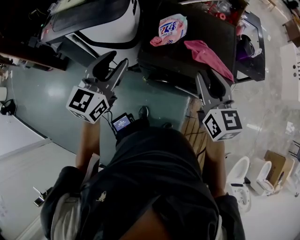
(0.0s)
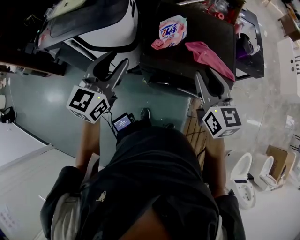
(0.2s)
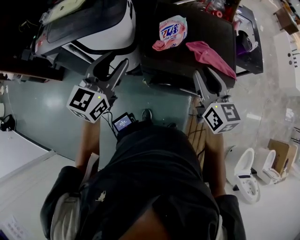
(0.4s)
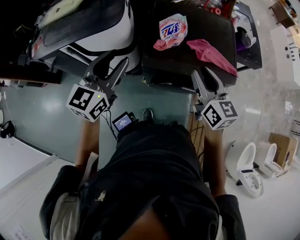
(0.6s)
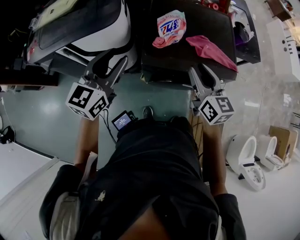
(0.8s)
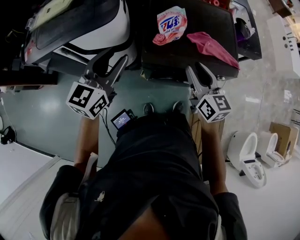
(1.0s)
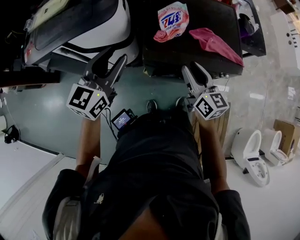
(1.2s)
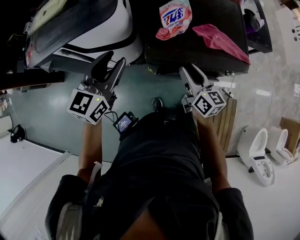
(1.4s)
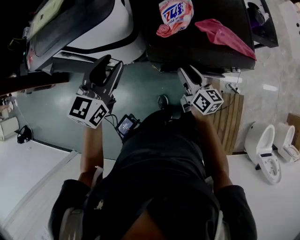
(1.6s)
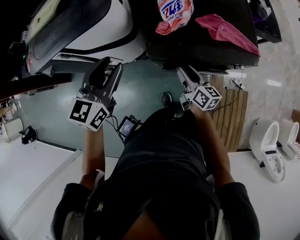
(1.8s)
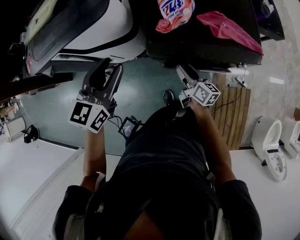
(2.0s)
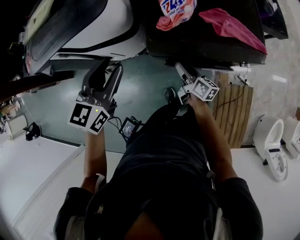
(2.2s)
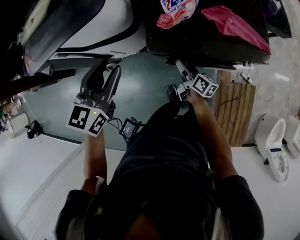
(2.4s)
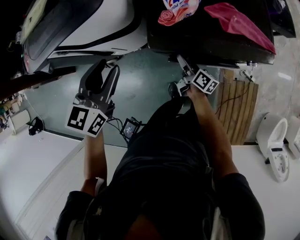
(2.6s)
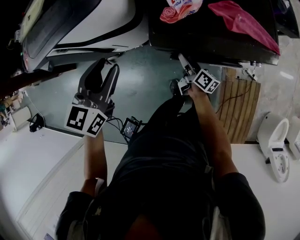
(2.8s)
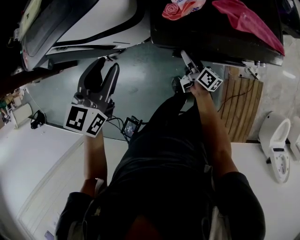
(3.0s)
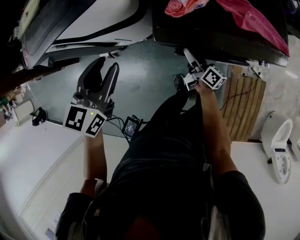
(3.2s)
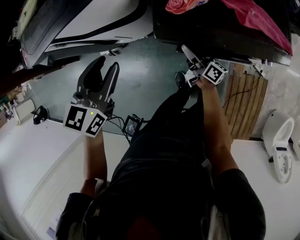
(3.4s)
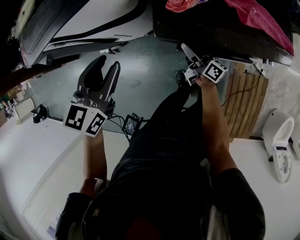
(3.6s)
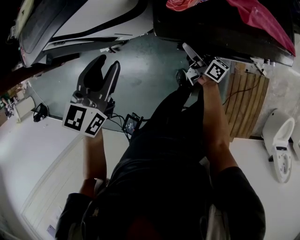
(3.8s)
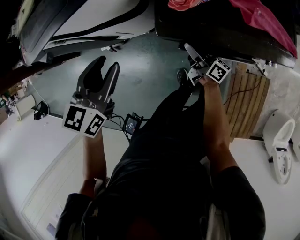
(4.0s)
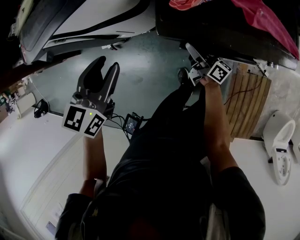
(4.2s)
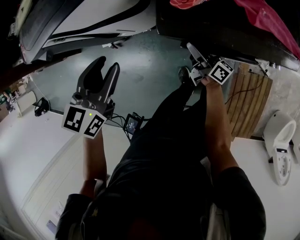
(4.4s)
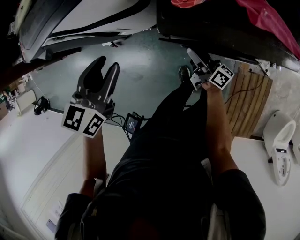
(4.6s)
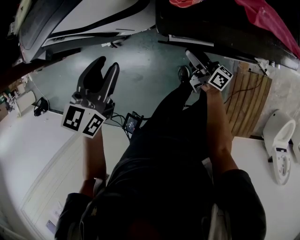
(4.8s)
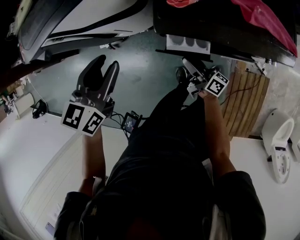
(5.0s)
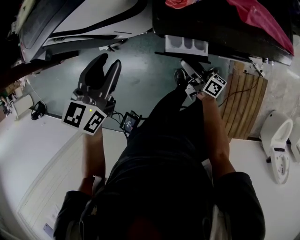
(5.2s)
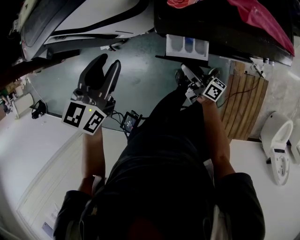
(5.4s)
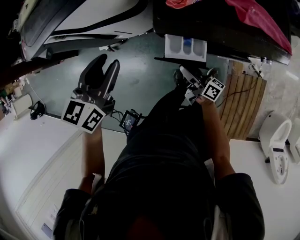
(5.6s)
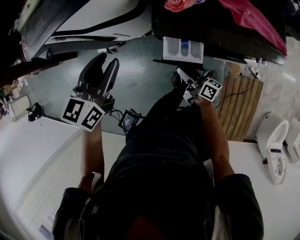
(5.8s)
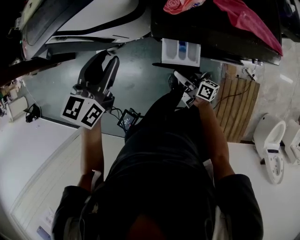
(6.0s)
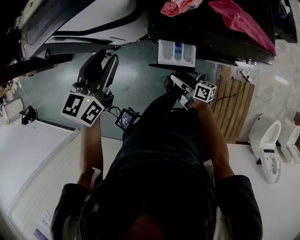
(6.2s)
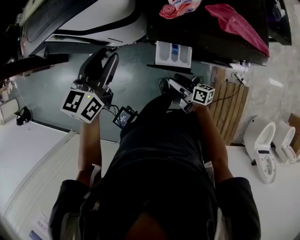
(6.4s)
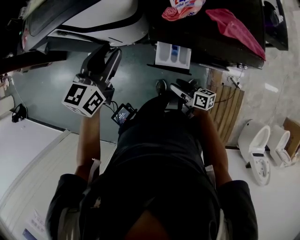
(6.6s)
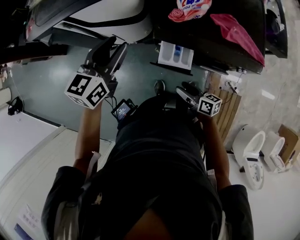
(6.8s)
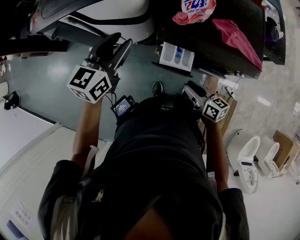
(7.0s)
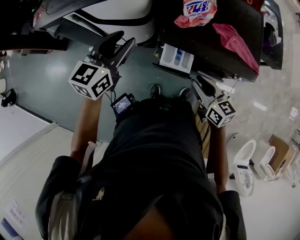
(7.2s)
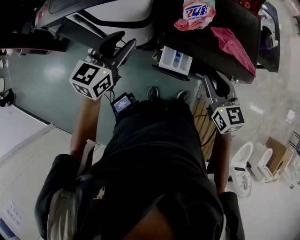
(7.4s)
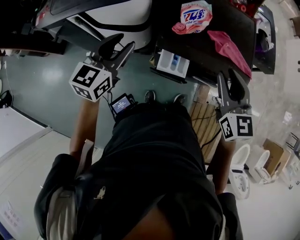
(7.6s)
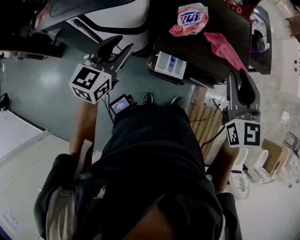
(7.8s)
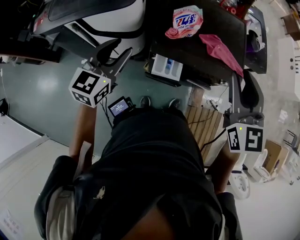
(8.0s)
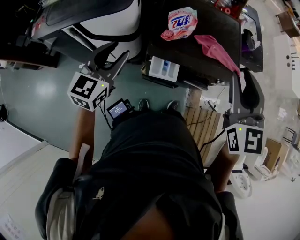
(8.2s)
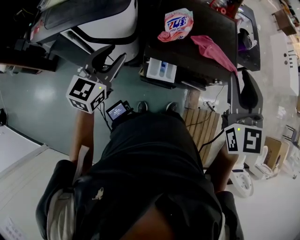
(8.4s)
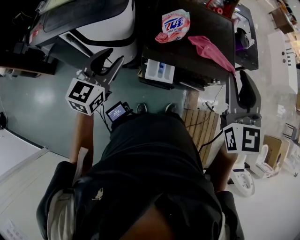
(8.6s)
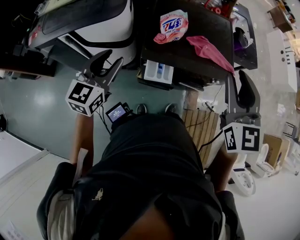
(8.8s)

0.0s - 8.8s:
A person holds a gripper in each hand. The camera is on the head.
0.0s - 1.4s: The left gripper is displaced to the left, downward and forward by about 15 cm. The right gripper travels downward and to the left by approximately 20 cm, and rotates roughly 30 degrees.
1.4s - 3.0s: The right gripper heads downward, covering approximately 25 cm, changes its angle by about 40 degrees, and opens. The left gripper shifts roughly 10 cm downward.
3.0s - 4.4s: The grippers make only small movements.
4.4s - 5.8s: The right gripper is displaced backward by about 10 cm.
5.8s - 7.4s: The left gripper heads upward, covering some 10 cm. Meanwhile the right gripper is displaced upward by approximately 30 cm, and rolls counterclockwise, seen from behind, by some 60 degrees.
7.4s - 8.8s: The right gripper heads upward, covering about 20 cm, and swivels approximately 30 degrees.

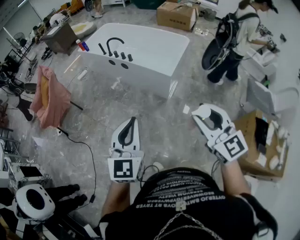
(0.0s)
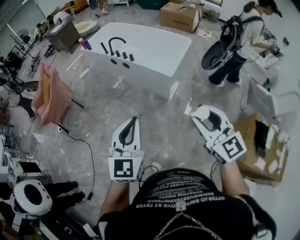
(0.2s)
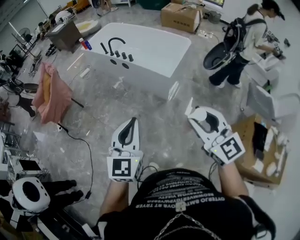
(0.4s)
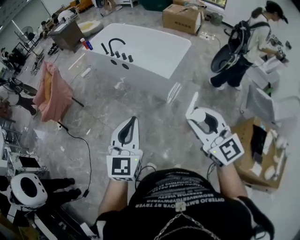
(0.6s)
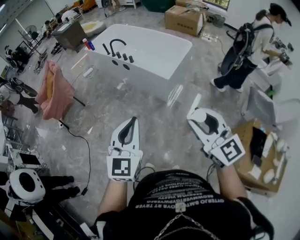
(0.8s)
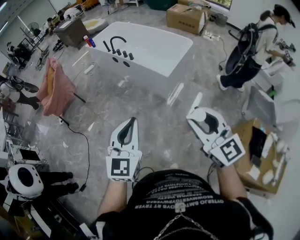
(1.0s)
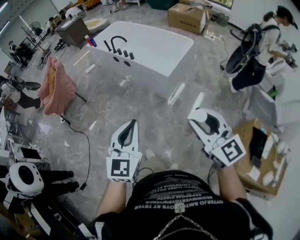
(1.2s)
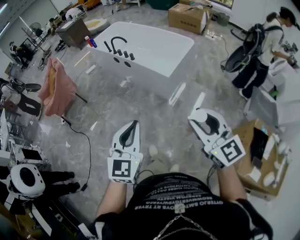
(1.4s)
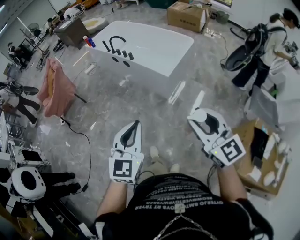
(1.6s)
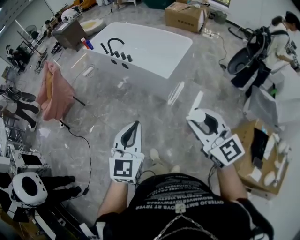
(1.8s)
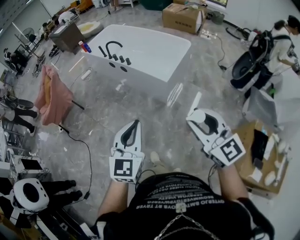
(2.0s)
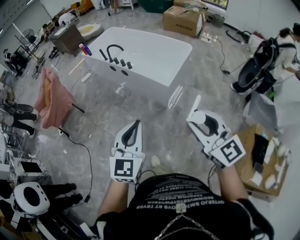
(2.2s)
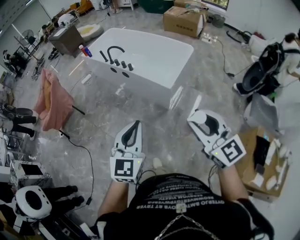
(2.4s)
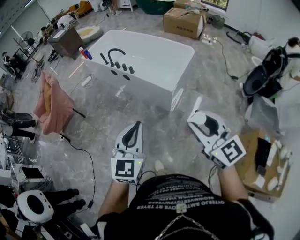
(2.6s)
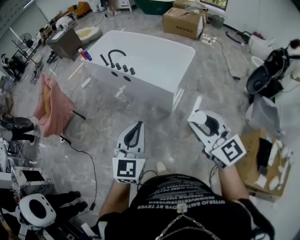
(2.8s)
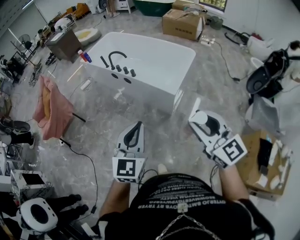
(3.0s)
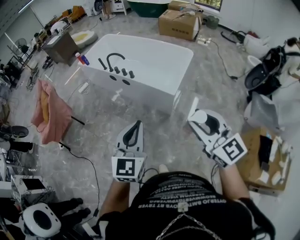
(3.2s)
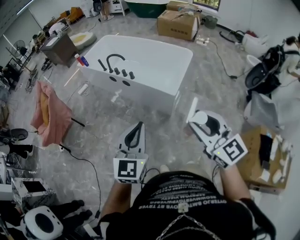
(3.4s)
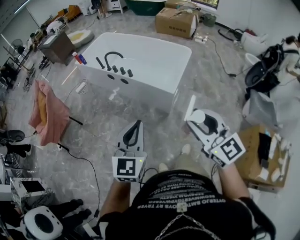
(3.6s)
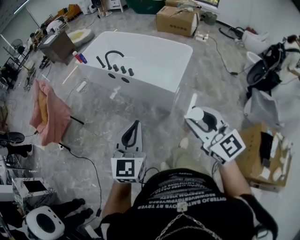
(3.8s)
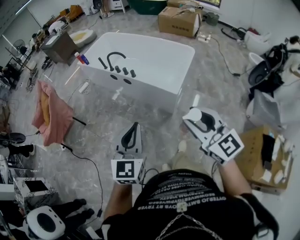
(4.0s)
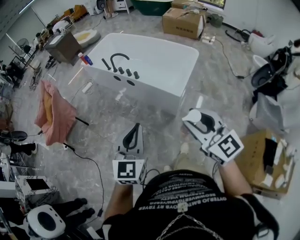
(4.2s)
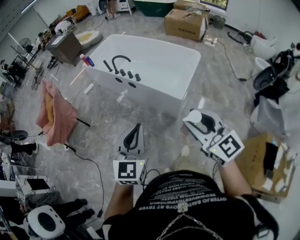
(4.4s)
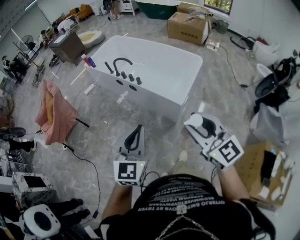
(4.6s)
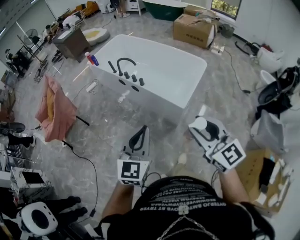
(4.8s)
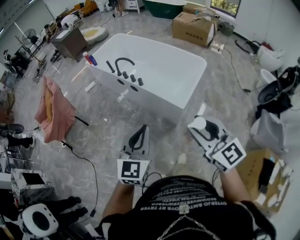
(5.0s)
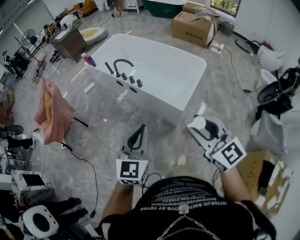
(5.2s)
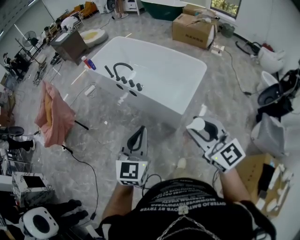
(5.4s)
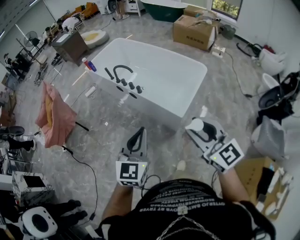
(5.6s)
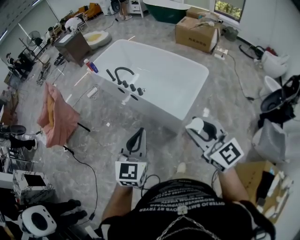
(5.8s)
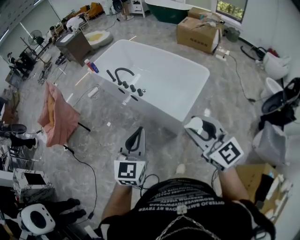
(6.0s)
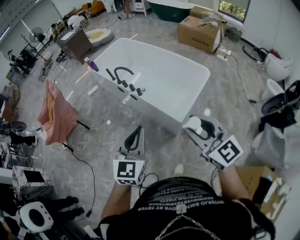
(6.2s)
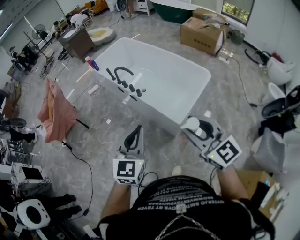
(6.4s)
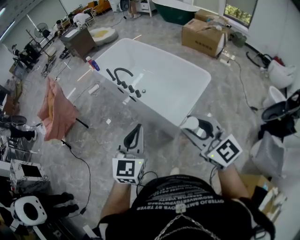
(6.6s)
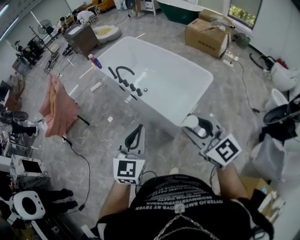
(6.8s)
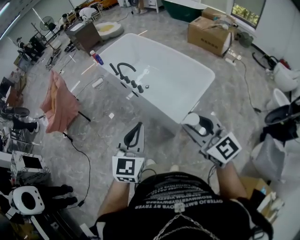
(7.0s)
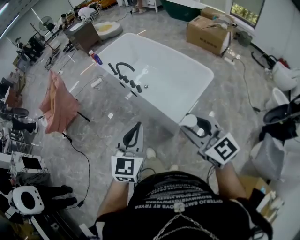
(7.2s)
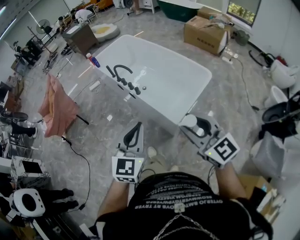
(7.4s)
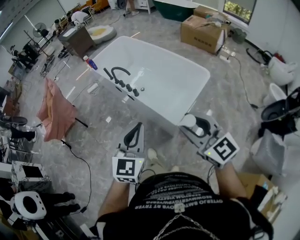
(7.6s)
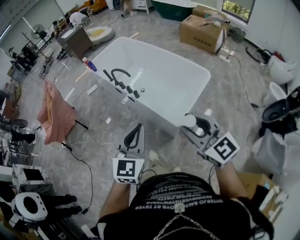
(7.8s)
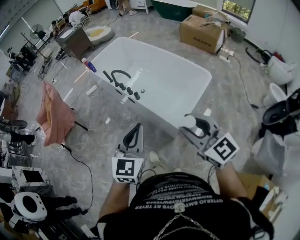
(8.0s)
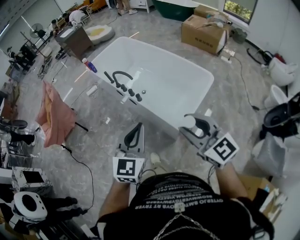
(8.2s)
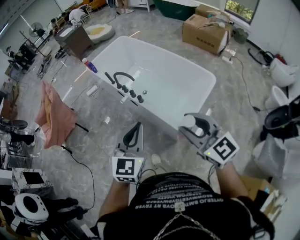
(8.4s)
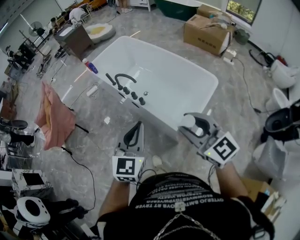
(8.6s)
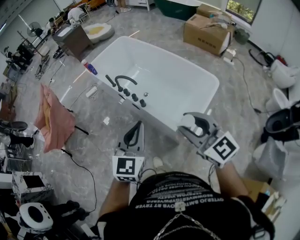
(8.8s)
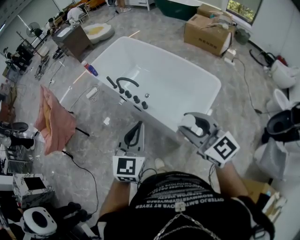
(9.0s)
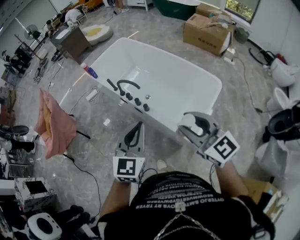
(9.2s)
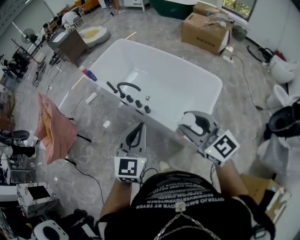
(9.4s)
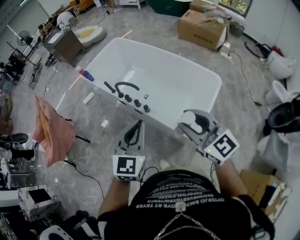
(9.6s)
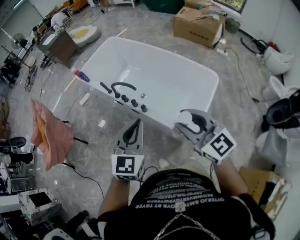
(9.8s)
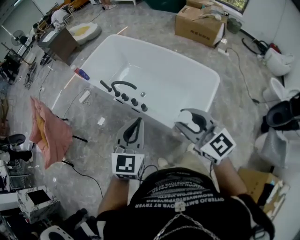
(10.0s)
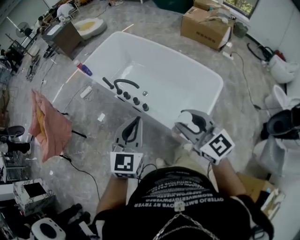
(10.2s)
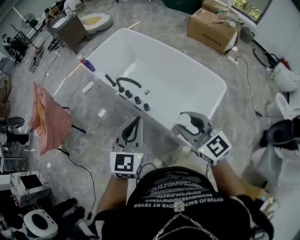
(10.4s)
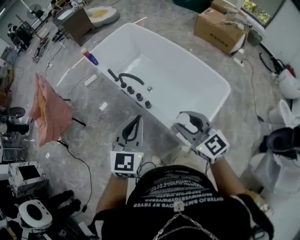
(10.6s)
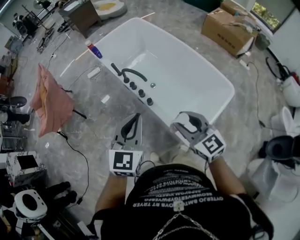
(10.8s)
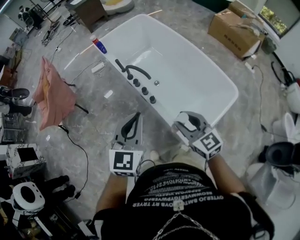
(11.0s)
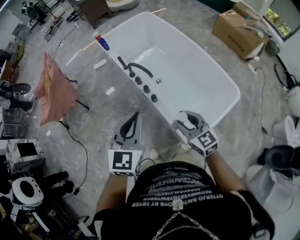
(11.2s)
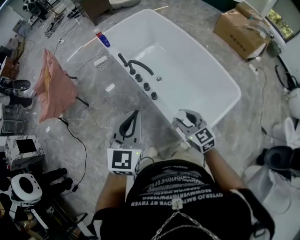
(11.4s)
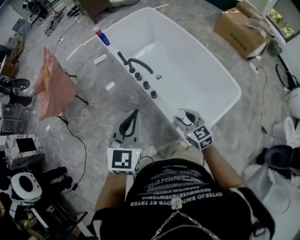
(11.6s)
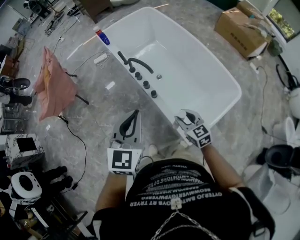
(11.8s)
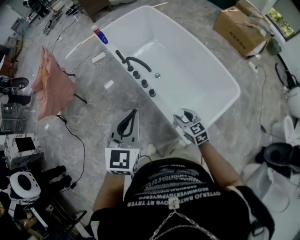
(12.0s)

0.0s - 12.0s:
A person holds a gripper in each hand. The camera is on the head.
0.0s - 1.6s: The two grippers go about 10 cm to the right.
1.6s - 3.0s: The left gripper is displaced forward by roughly 20 cm, while the right gripper heads forward and to the left, covering about 20 cm.
3.0s - 4.4s: Both grippers travel together forward, approximately 5 cm.
4.4s - 6.0s: Both grippers travel together forward and to the right, approximately 15 cm.
6.0s - 7.6s: The left gripper travels to the right by approximately 5 cm. Meanwhile the right gripper travels forward by about 5 cm.
7.6s - 9.0s: Both grippers move forward, about 20 cm.
9.0s - 10.4s: The right gripper goes approximately 15 cm forward and downward. The left gripper is displaced forward by some 10 cm.
10.4s - 12.0s: The right gripper heads downward, covering some 25 cm, and turns by some 20 degrees.

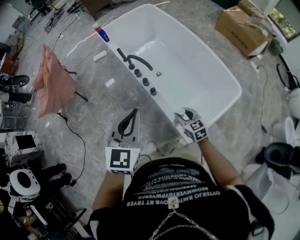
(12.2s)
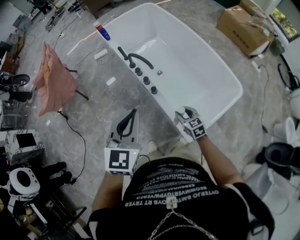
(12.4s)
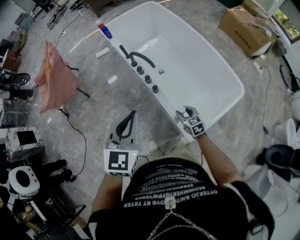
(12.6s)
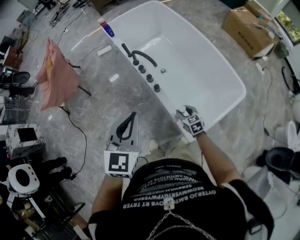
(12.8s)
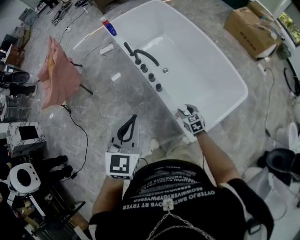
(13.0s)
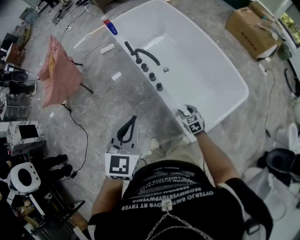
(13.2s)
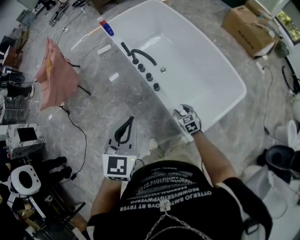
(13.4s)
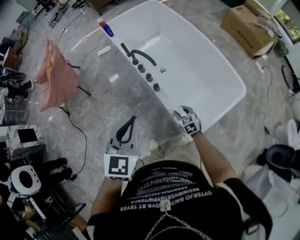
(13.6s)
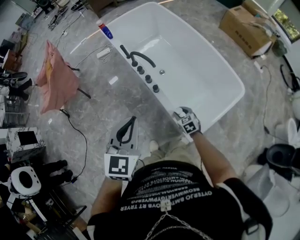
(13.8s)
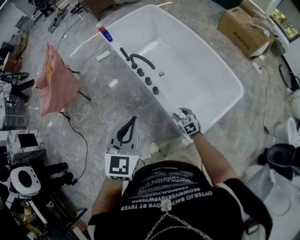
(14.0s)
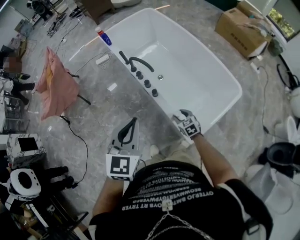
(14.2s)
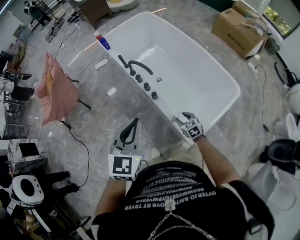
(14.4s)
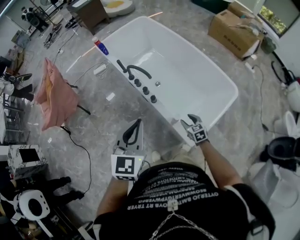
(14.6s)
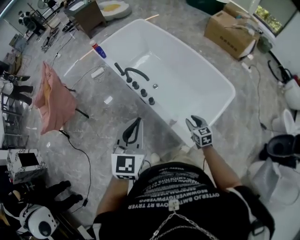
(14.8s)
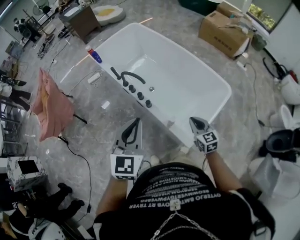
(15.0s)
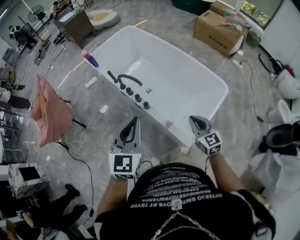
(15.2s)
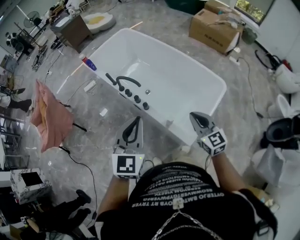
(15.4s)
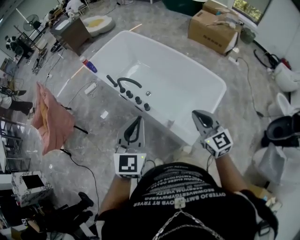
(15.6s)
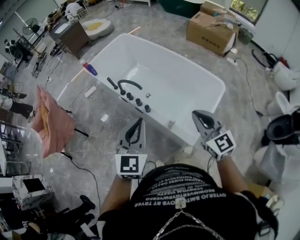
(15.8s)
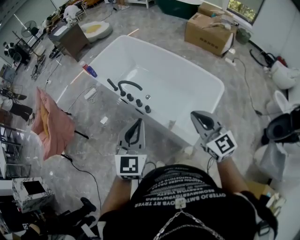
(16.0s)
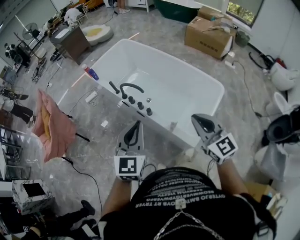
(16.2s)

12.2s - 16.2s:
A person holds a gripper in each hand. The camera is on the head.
12.2s - 13.6s: The right gripper travels downward by roughly 10 cm.
13.6s - 14.8s: The right gripper goes approximately 10 cm upward and to the right, and swivels some 20 degrees.
14.8s - 16.2s: The right gripper shifts some 30 cm upward, turns by approximately 30 degrees, and closes its fingers.
